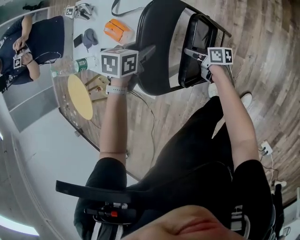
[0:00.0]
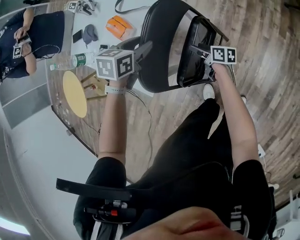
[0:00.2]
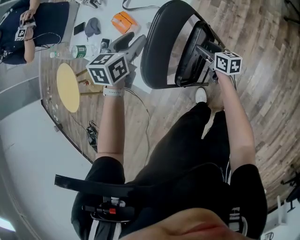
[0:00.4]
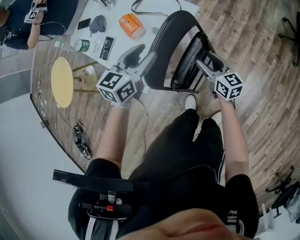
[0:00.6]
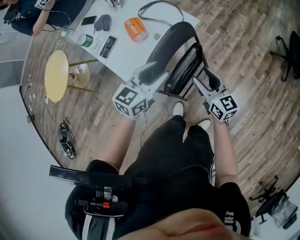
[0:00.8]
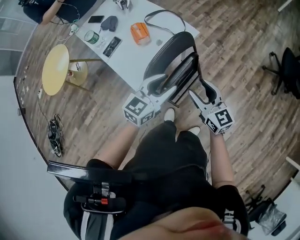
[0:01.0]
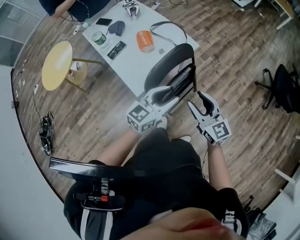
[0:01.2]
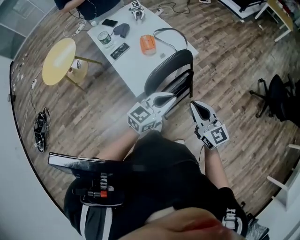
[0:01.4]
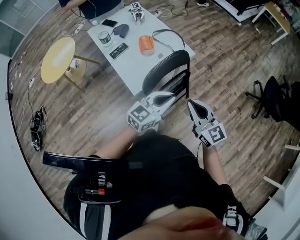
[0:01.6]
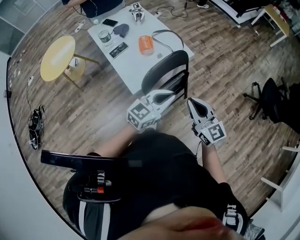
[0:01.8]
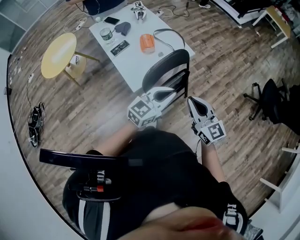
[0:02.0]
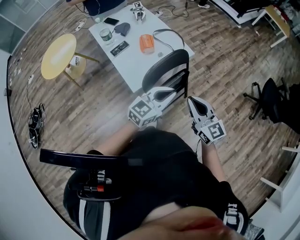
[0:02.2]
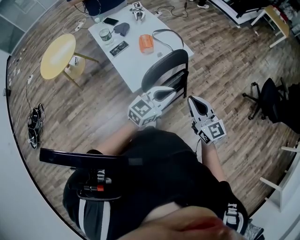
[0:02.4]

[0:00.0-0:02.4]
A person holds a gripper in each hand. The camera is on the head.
0:00.0 to 0:01.2: The right gripper travels upward by some 40 cm, and twists some 70 degrees counterclockwise, seen from behind. Meanwhile the left gripper moves upward and backward, approximately 30 cm, and tips its fingers upward by approximately 60 degrees.
0:01.2 to 0:02.4: The right gripper moves upward, some 5 cm, and closes, while the left gripper changes place by some 5 cm, and closes its fingers.

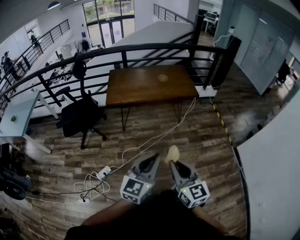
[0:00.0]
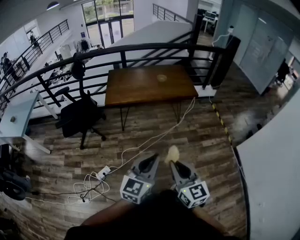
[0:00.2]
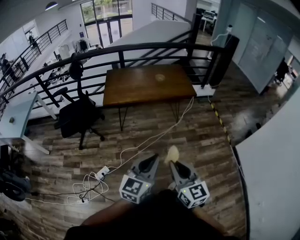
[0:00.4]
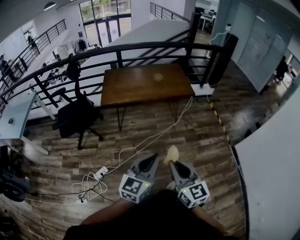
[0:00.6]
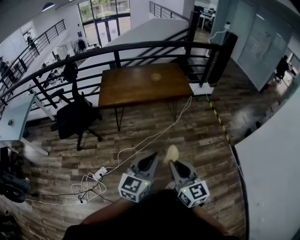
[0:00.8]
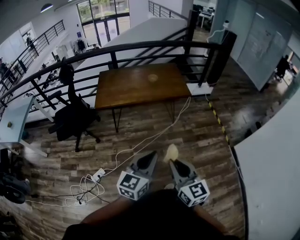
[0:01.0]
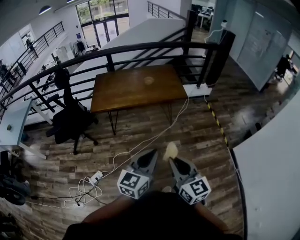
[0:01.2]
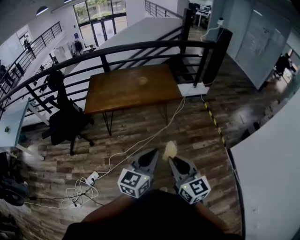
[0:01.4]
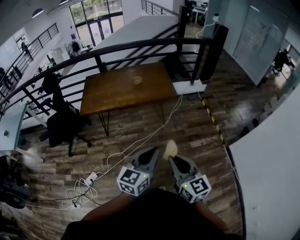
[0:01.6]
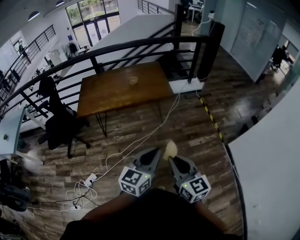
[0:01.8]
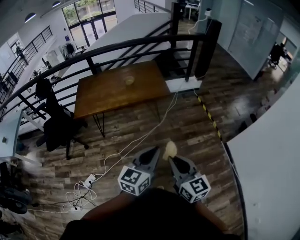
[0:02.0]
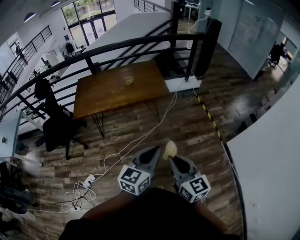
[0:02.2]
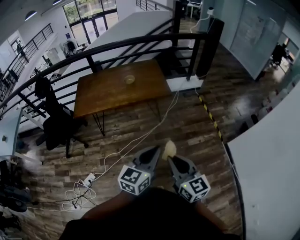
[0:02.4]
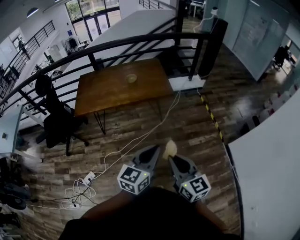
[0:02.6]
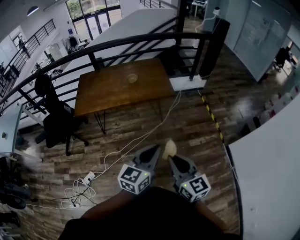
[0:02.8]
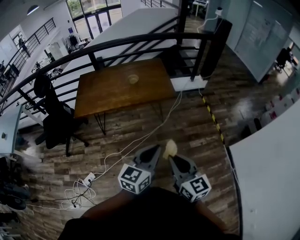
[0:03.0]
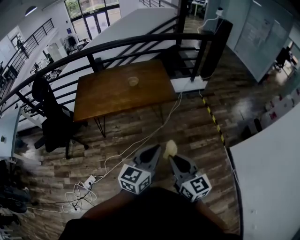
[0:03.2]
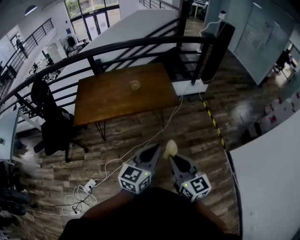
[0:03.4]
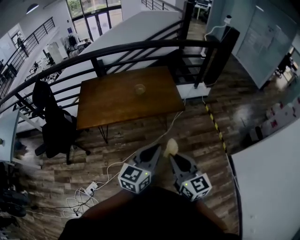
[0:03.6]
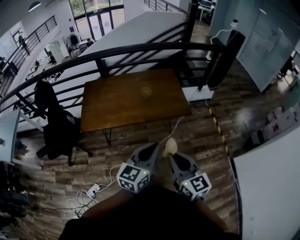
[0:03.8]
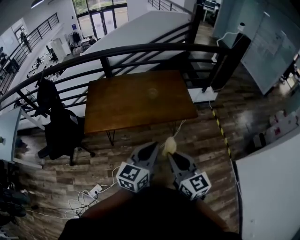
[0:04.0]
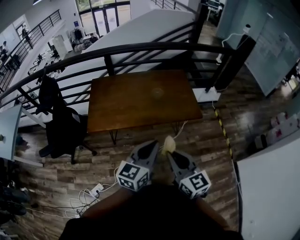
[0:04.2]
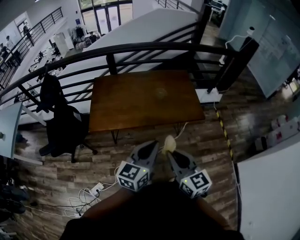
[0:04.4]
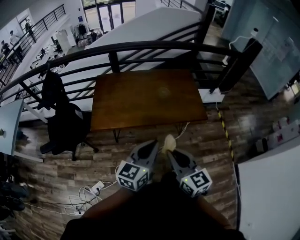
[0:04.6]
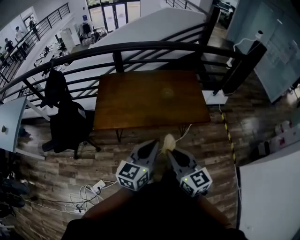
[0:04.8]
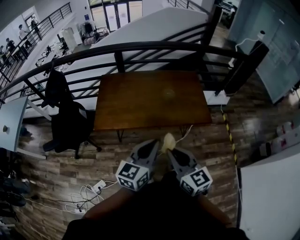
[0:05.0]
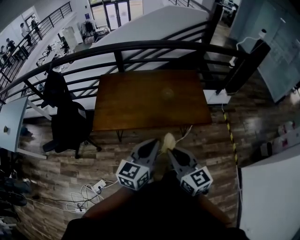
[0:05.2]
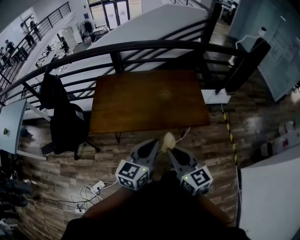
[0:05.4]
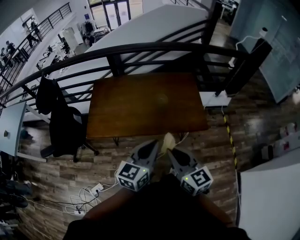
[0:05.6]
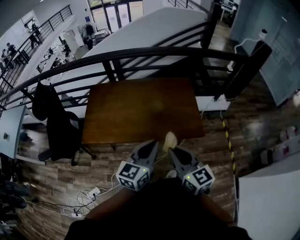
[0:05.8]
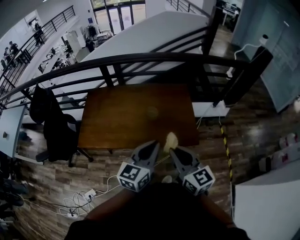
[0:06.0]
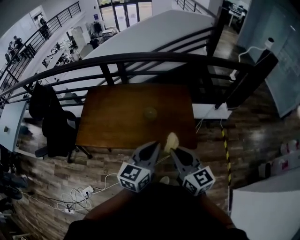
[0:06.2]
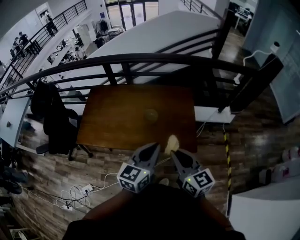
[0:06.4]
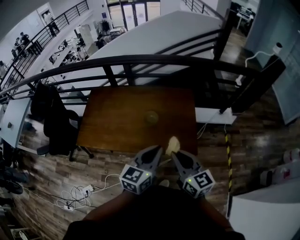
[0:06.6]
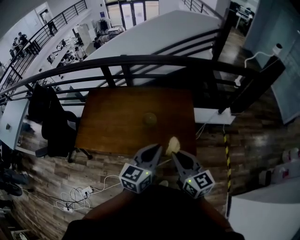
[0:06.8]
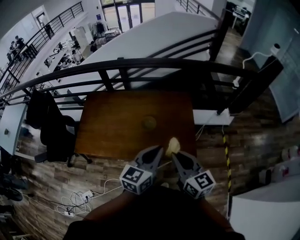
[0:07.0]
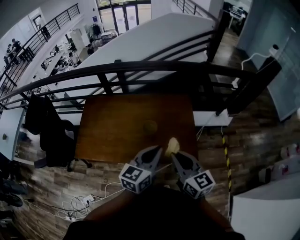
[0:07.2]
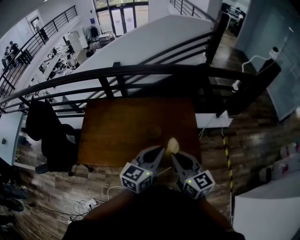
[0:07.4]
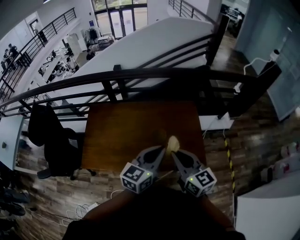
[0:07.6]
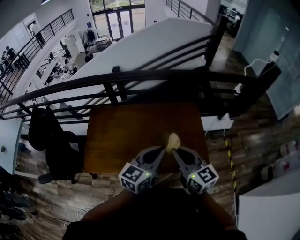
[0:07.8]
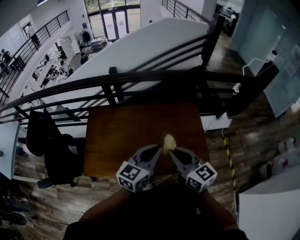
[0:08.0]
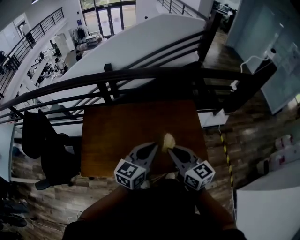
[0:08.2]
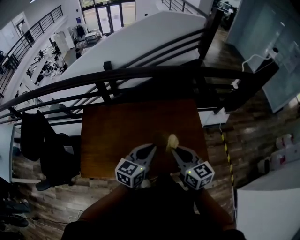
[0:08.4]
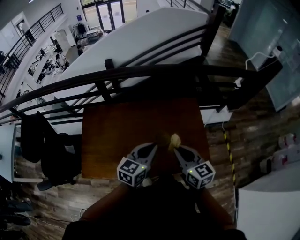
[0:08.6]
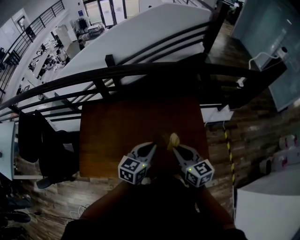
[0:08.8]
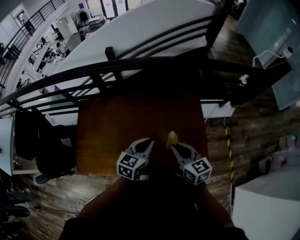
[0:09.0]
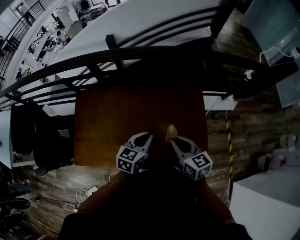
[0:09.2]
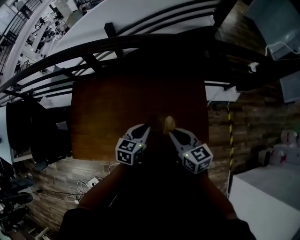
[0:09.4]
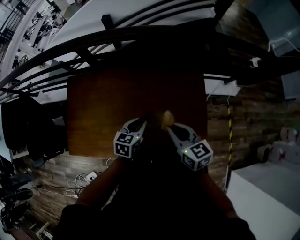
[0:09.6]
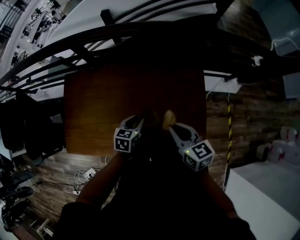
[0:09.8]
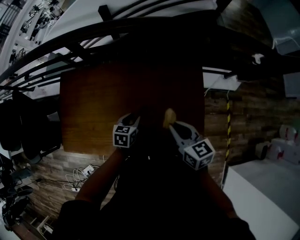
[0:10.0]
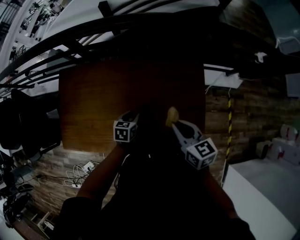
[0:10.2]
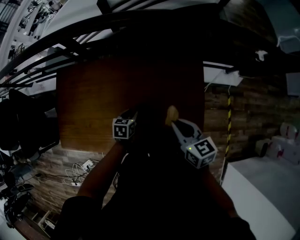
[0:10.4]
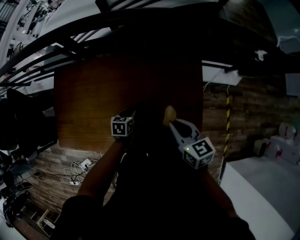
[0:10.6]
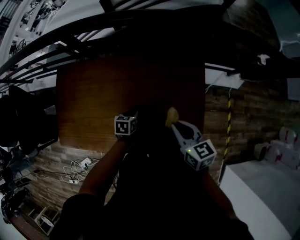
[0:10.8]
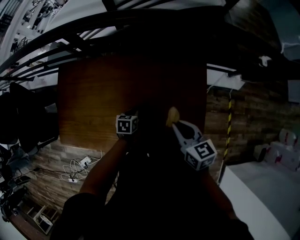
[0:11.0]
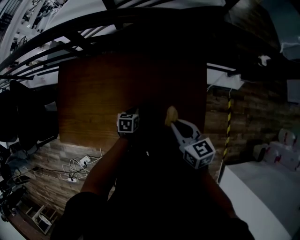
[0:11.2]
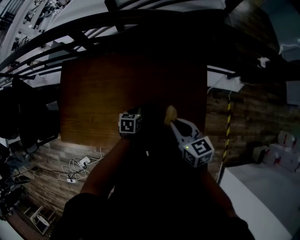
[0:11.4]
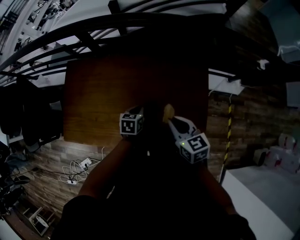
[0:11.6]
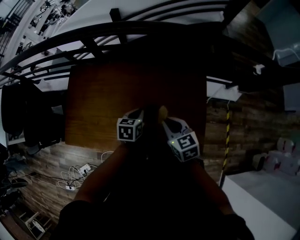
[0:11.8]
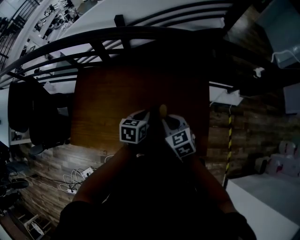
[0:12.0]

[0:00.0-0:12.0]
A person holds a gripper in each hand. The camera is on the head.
0:00.0 to 0:01.6: Both grippers move to the right and forward, some 25 cm.
0:01.6 to 0:03.0: Both grippers travel together forward, about 10 cm.
0:03.0 to 0:04.4: The two grippers go approximately 35 cm to the left and forward.
0:04.4 to 0:06.0: Both grippers travel together forward and to the right, some 25 cm.
0:06.0 to 0:07.6: Both grippers travel together forward, roughly 15 cm.
0:07.6 to 0:09.0: Both grippers move forward and downward, about 20 cm.
0:09.0 to 0:10.4: The left gripper is displaced downward by about 30 cm, points its fingers some 30 degrees further downward, and opens up. Meanwhile the right gripper travels downward, to the right and forward by some 15 cm.
0:10.4 to 0:12.0: The right gripper shifts roughly 10 cm to the left, and turns by approximately 30 degrees. Meanwhile the left gripper is displaced upward by some 15 cm, and closes up.

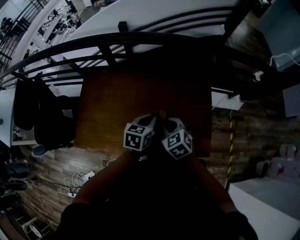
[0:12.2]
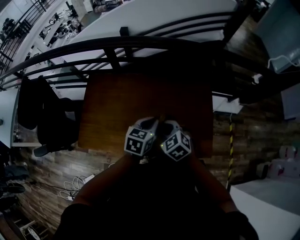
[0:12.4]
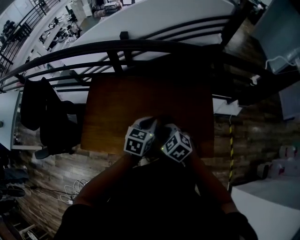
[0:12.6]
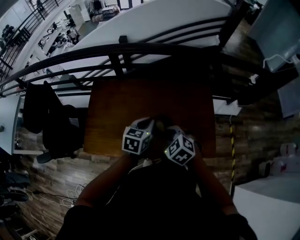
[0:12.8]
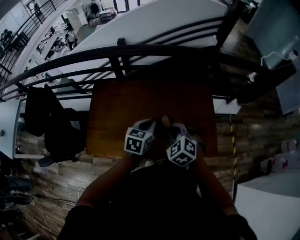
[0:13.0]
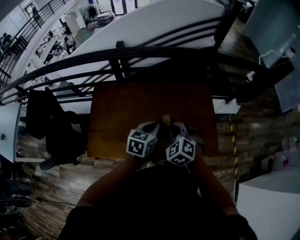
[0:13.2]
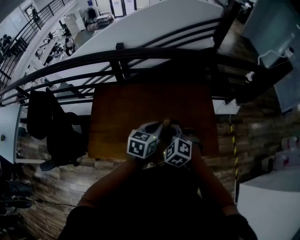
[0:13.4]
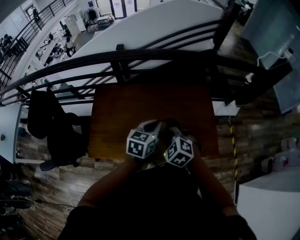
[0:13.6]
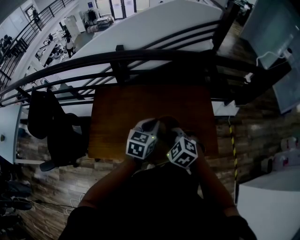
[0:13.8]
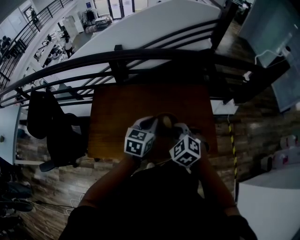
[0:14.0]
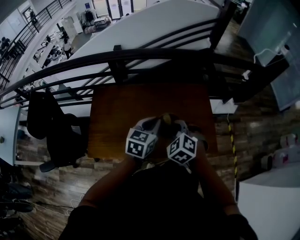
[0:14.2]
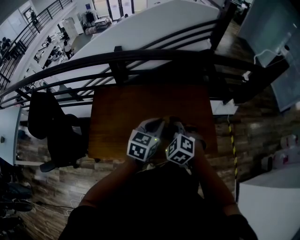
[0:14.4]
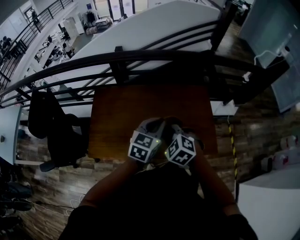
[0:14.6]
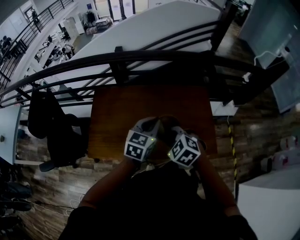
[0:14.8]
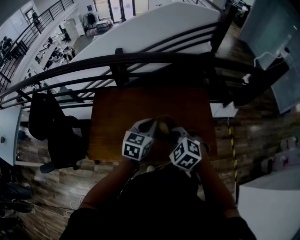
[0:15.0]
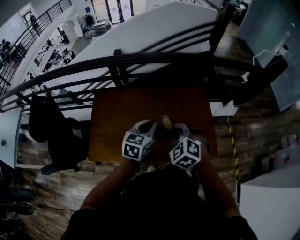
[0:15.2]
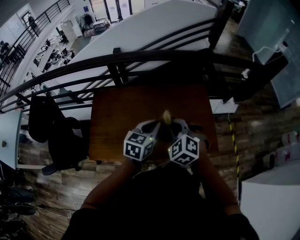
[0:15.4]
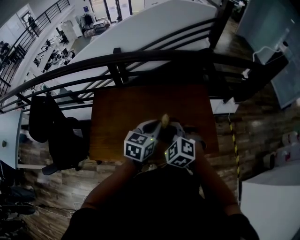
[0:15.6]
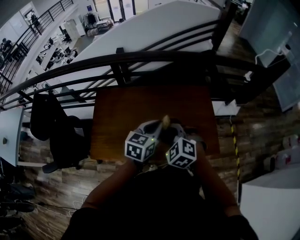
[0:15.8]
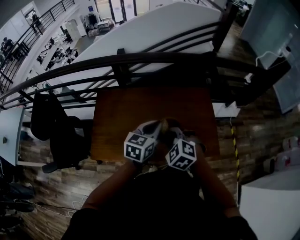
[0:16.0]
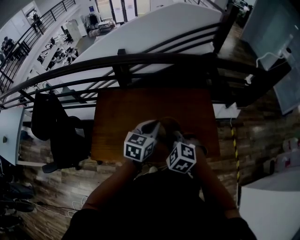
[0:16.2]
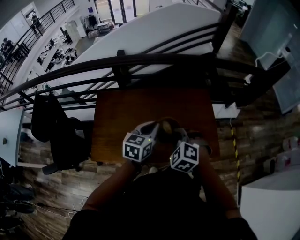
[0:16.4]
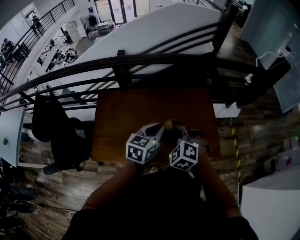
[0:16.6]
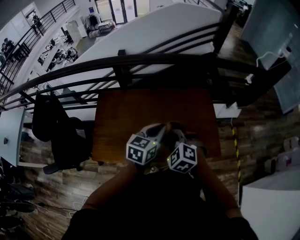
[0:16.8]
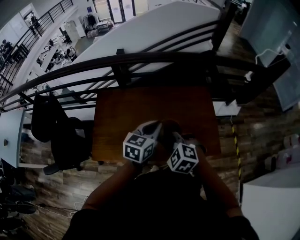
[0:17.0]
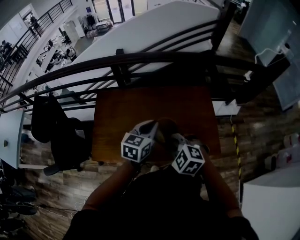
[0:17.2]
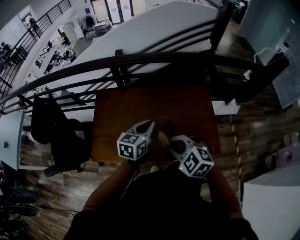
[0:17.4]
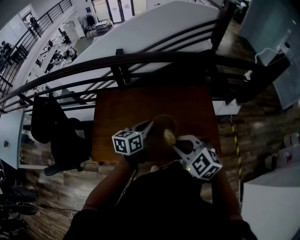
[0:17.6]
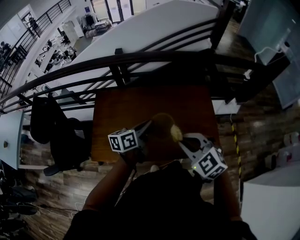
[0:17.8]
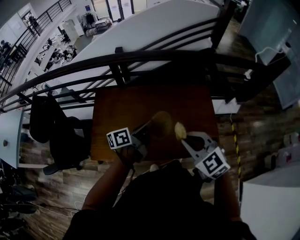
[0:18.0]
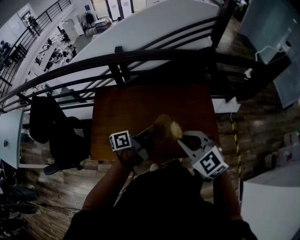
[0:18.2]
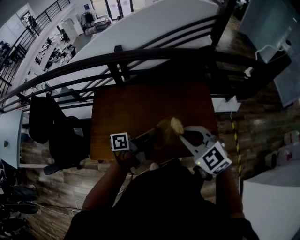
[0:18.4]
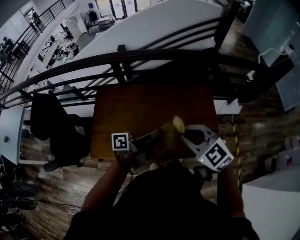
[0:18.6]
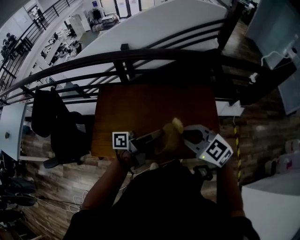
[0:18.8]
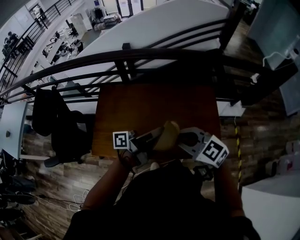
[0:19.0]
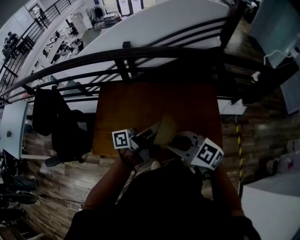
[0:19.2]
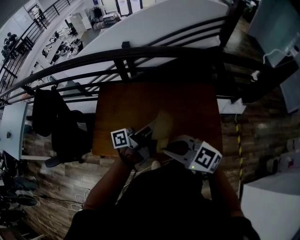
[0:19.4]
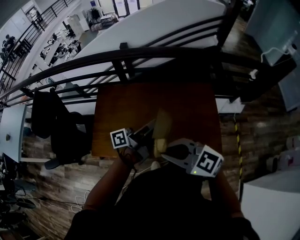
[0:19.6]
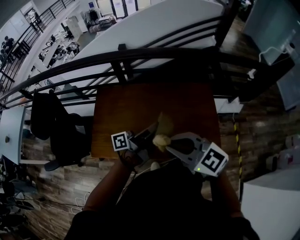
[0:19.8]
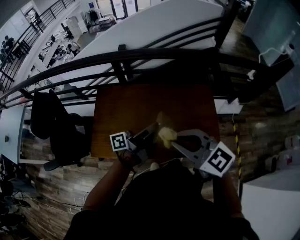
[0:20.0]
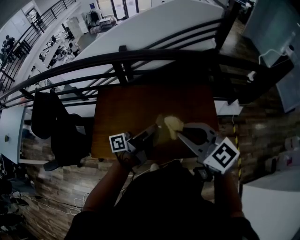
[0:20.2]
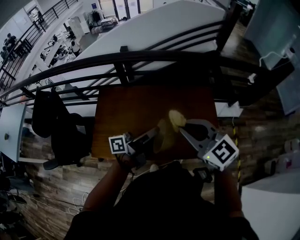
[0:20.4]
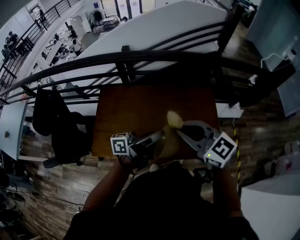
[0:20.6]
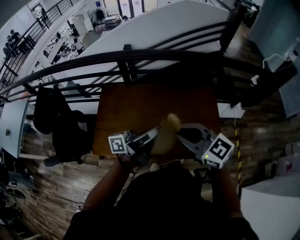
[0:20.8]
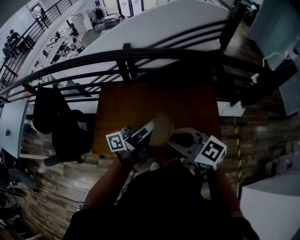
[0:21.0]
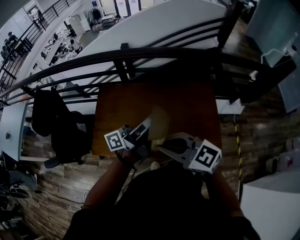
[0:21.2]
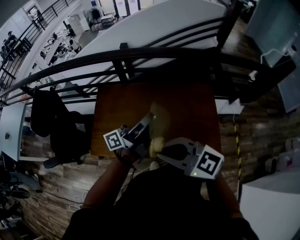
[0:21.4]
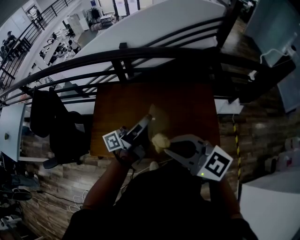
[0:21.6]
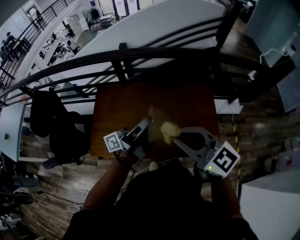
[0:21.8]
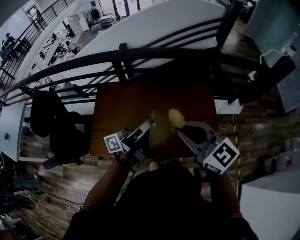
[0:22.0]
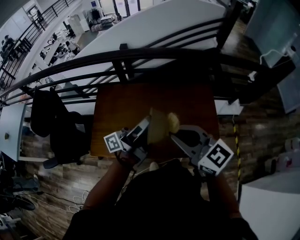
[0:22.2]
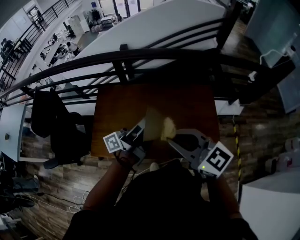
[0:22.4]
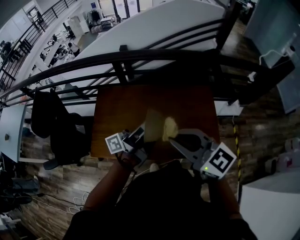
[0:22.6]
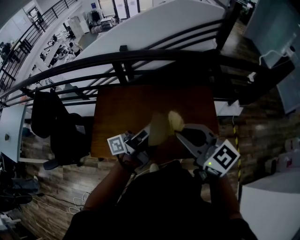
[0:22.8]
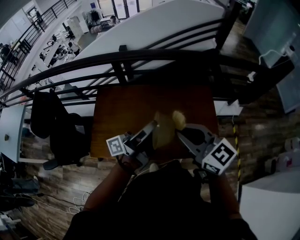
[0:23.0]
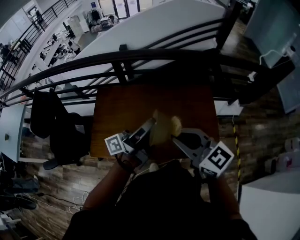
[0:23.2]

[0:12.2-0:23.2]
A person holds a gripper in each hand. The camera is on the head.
0:12.2 to 0:13.8: The left gripper shifts about 15 cm upward, to the left and backward; the right gripper goes some 15 cm backward, to the left and upward.
0:13.8 to 0:15.4: The right gripper changes place by roughly 5 cm.
0:15.4 to 0:17.0: The right gripper is displaced backward by about 5 cm.
0:17.0 to 0:18.4: The right gripper moves upward and to the right, some 10 cm, and rotates about 20 degrees, while the left gripper twists about 50 degrees counterclockwise, seen from behind.
0:18.4 to 0:20.0: The right gripper goes roughly 5 cm upward, and swivels approximately 20 degrees.
0:20.0 to 0:21.6: The right gripper goes forward and returns, approximately 5 cm each way. Meanwhile the left gripper heads upward, covering roughly 5 cm.
0:21.6 to 0:23.2: The right gripper changes place by roughly 5 cm.
